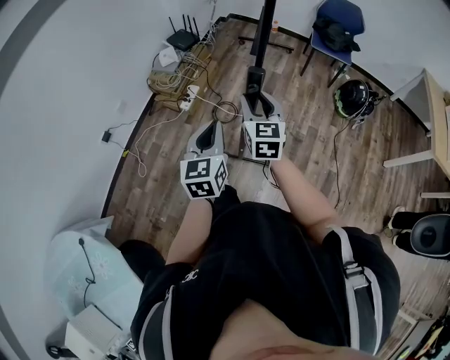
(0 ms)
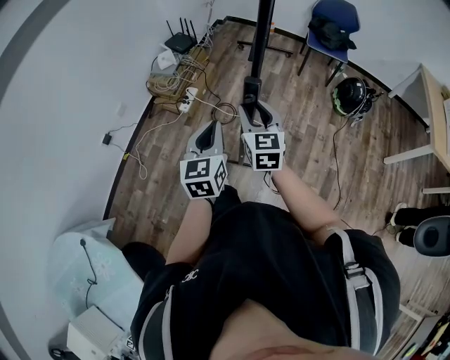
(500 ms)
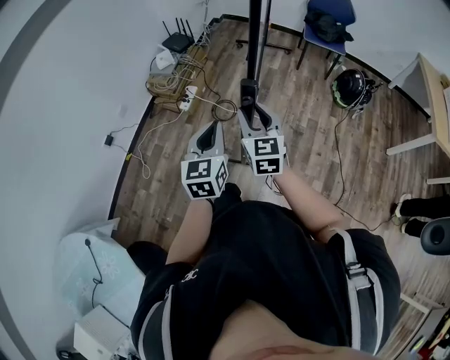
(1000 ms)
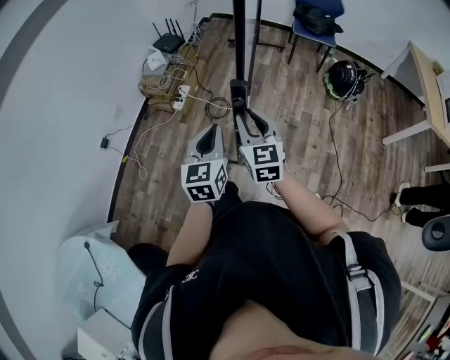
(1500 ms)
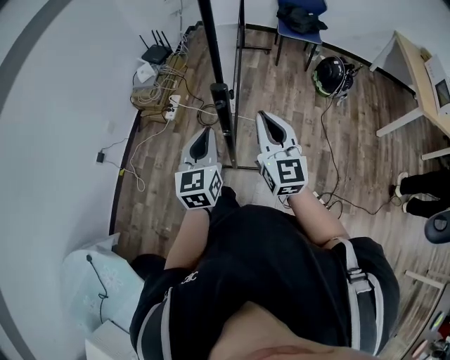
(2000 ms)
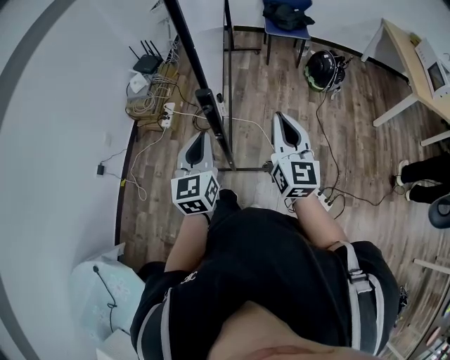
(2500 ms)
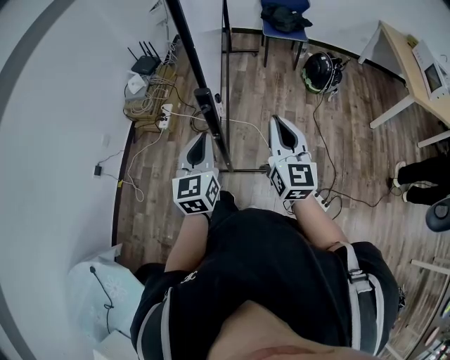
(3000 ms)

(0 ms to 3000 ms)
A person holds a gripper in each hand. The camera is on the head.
0 ms - 1500 ms: The left gripper is displaced backward by about 5 cm, while the right gripper shifts about 10 cm backward.
1500 ms - 3000 ms: The left gripper moves approximately 5 cm. The right gripper travels to the right and upward by some 15 cm, changes its angle by roughly 20 degrees, and closes.

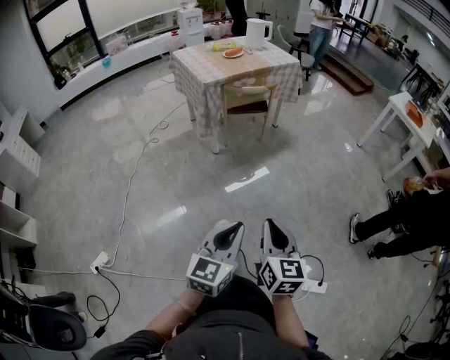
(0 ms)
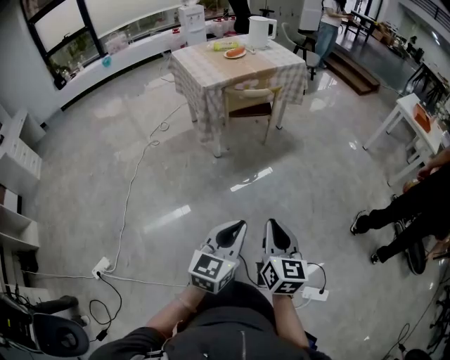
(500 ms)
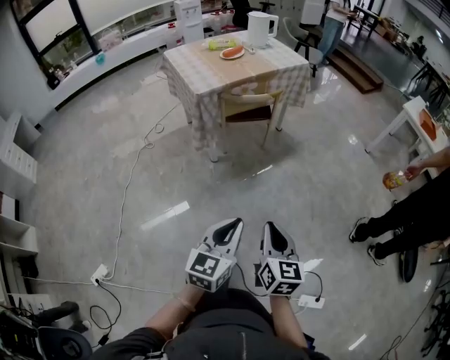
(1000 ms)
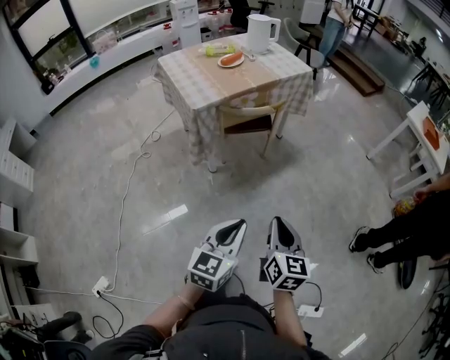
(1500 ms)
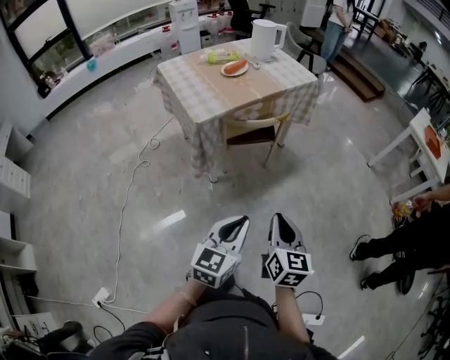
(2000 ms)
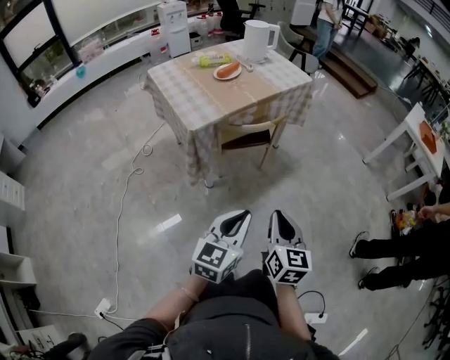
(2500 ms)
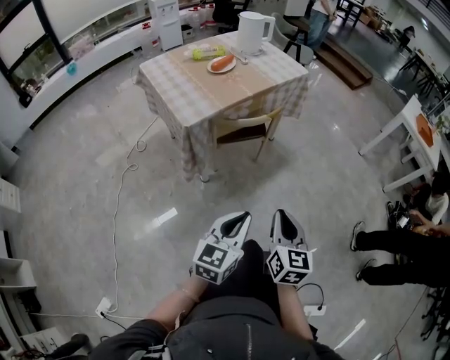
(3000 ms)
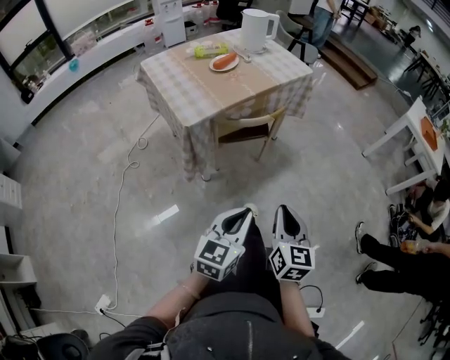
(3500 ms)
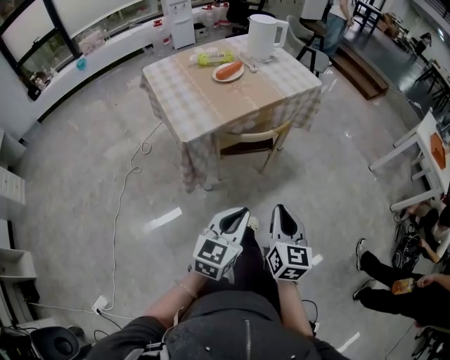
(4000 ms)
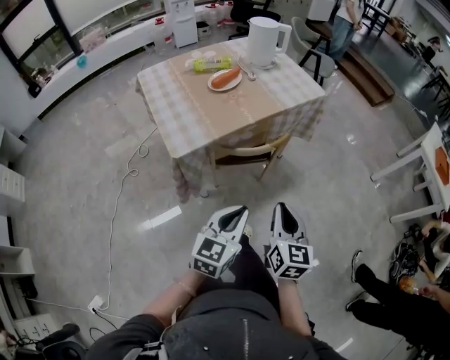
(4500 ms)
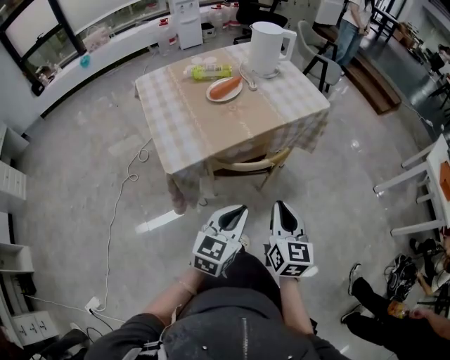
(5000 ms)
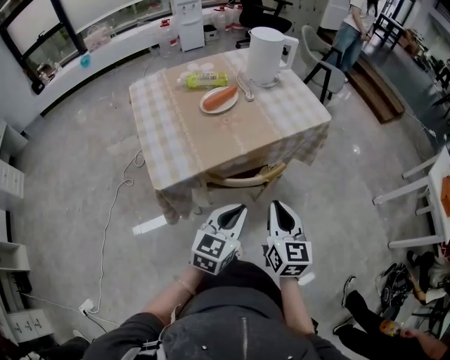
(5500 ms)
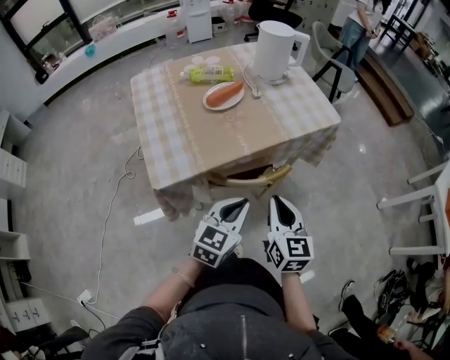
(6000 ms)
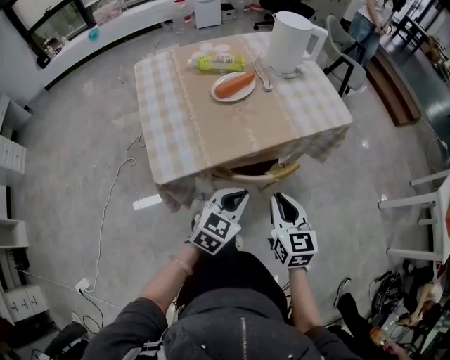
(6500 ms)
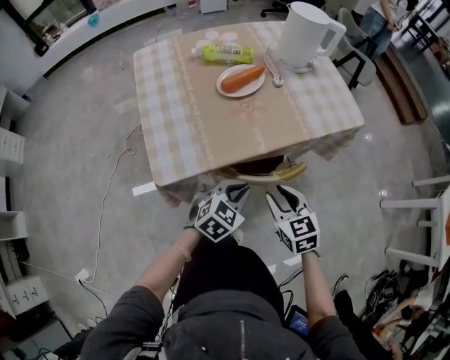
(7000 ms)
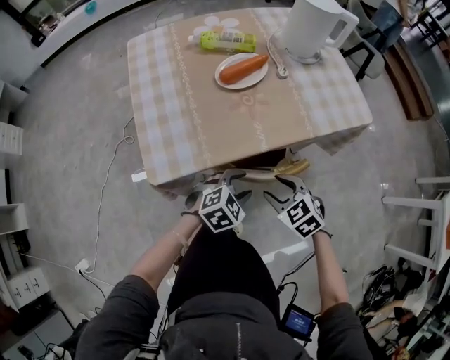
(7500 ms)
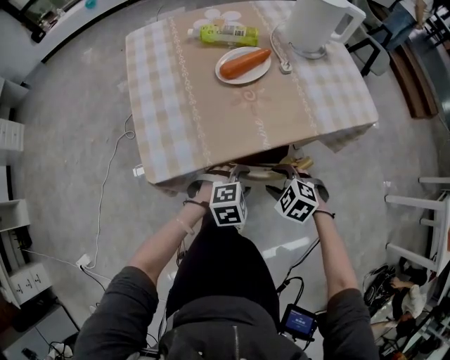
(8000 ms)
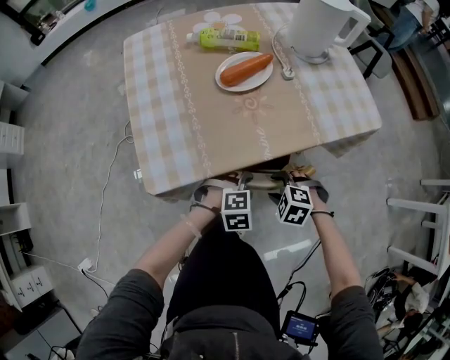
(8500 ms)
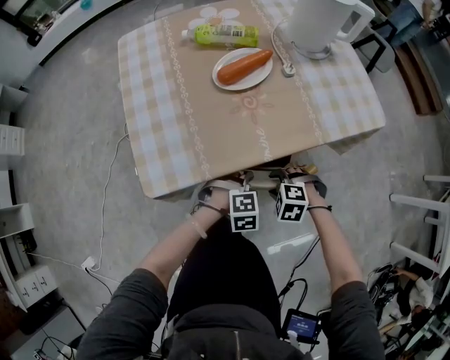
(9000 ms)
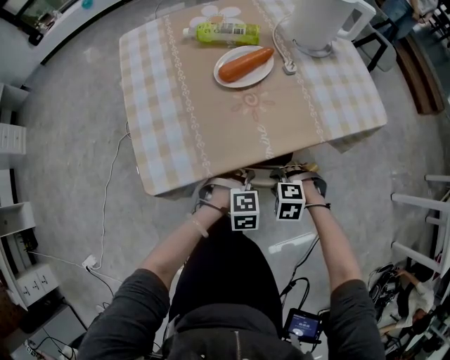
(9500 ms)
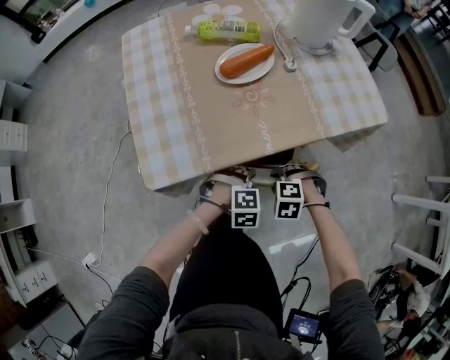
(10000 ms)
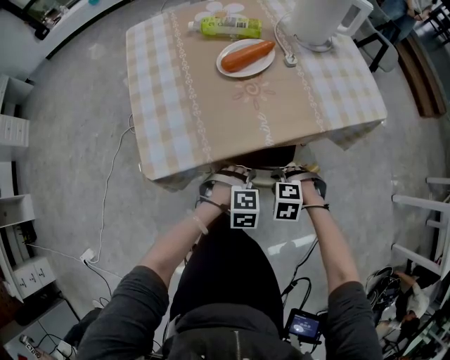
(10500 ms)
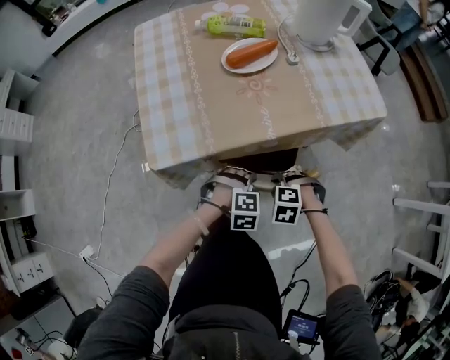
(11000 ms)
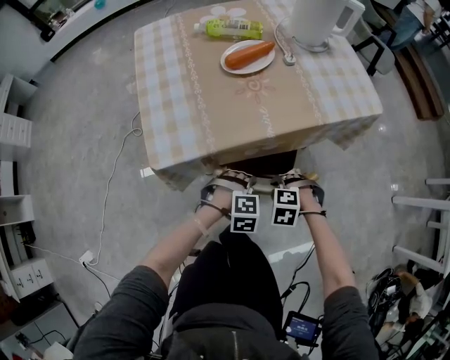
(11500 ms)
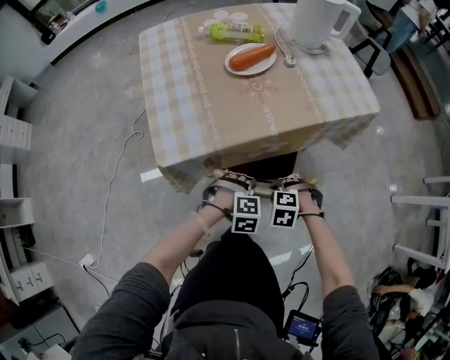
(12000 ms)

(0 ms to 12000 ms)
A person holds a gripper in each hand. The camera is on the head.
0 ms - 2000 ms: The grippers both shift forward by roughly 40 cm.
2000 ms - 4000 ms: Both grippers move forward, roughly 15 cm.
4000 ms - 6000 ms: Both grippers move forward, about 30 cm.
6000 ms - 8000 ms: Both grippers move downward and forward, some 20 cm. The left gripper points its fingers approximately 40 degrees further downward, and opens up; the right gripper tilts its fingers approximately 50 degrees downward, and opens up.
8000 ms - 10000 ms: Both grippers move downward, some 5 cm. The right gripper rotates about 30 degrees.
10000 ms - 12000 ms: The right gripper changes place by roughly 10 cm; the left gripper ends up some 10 cm from where it was.

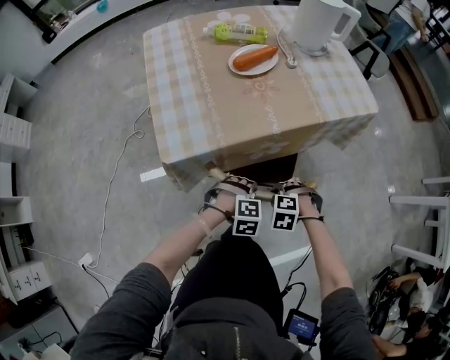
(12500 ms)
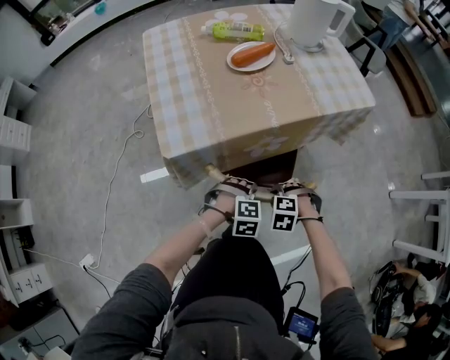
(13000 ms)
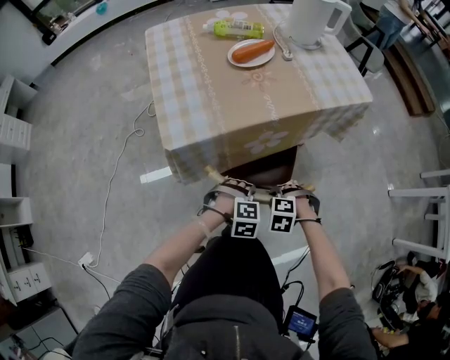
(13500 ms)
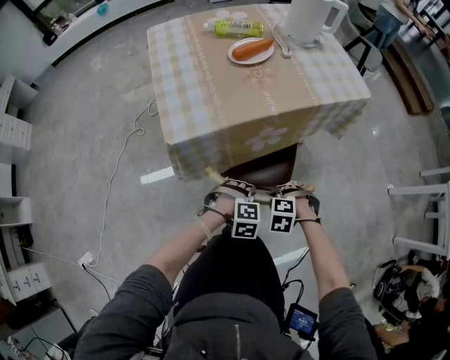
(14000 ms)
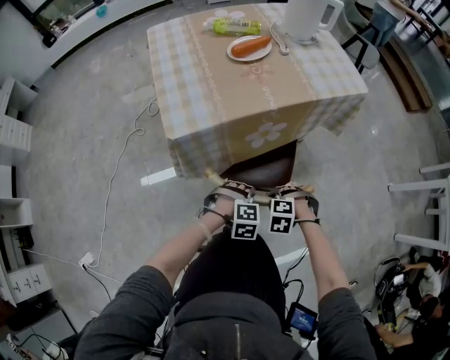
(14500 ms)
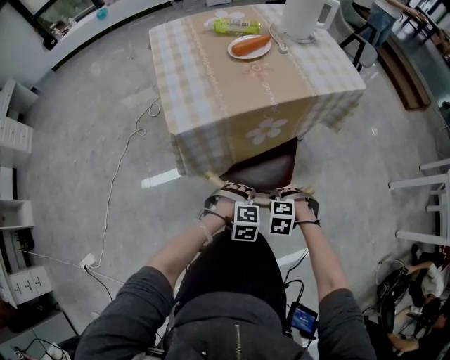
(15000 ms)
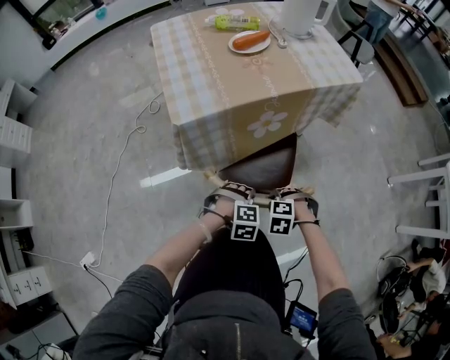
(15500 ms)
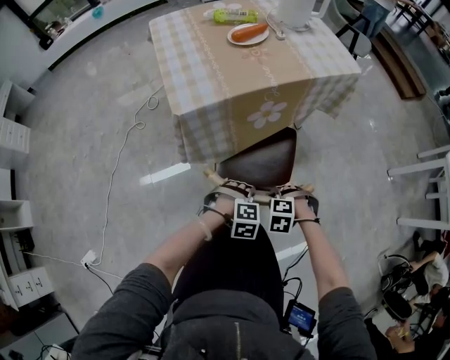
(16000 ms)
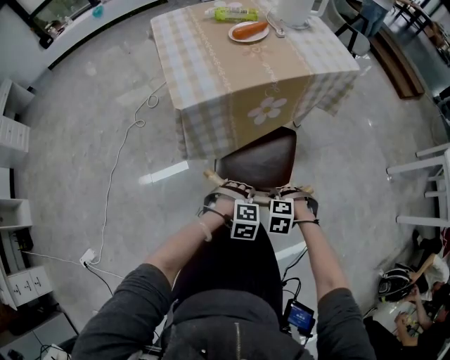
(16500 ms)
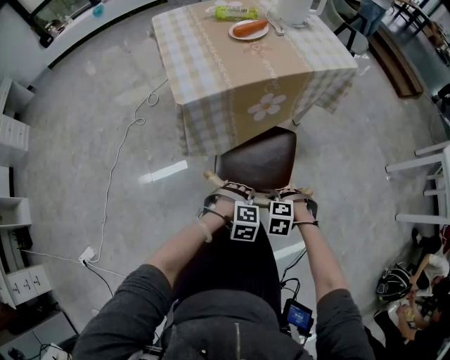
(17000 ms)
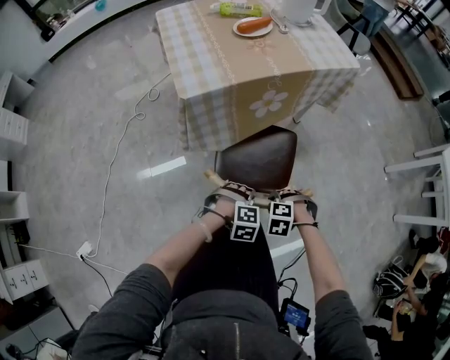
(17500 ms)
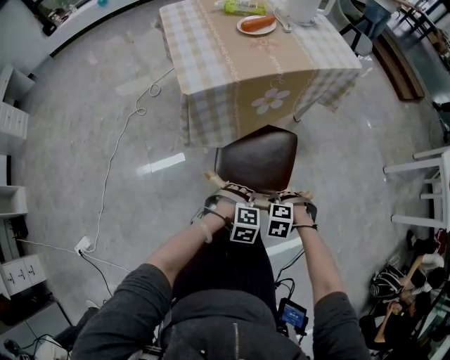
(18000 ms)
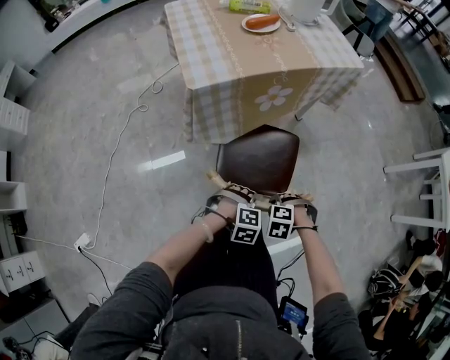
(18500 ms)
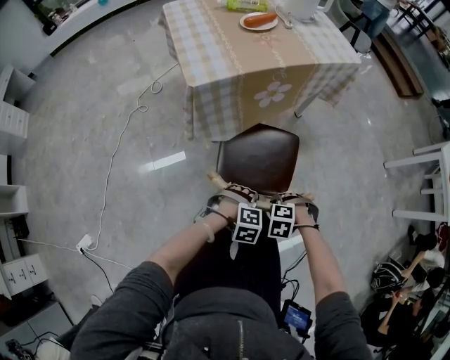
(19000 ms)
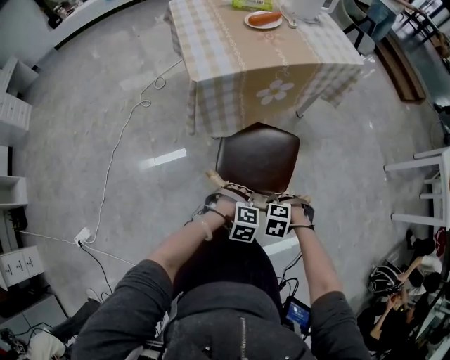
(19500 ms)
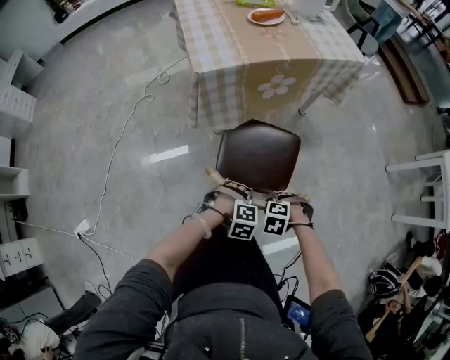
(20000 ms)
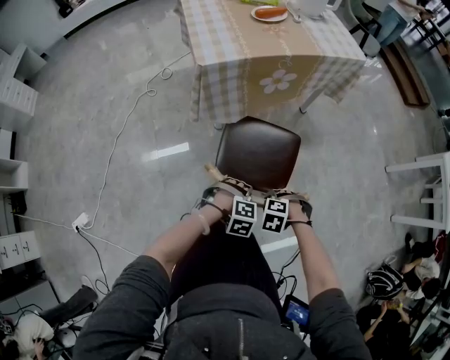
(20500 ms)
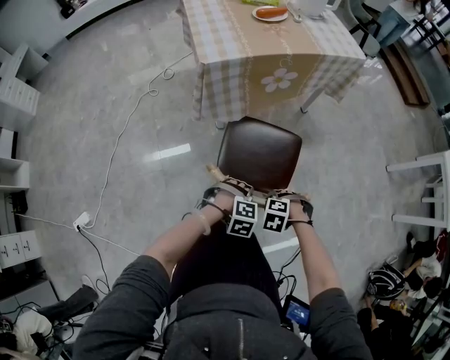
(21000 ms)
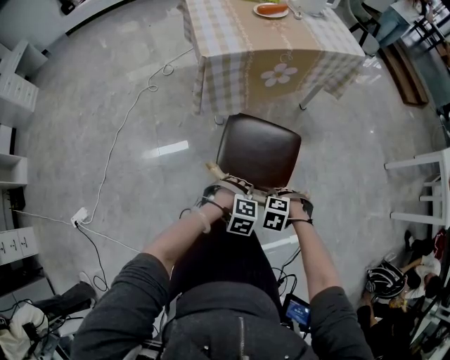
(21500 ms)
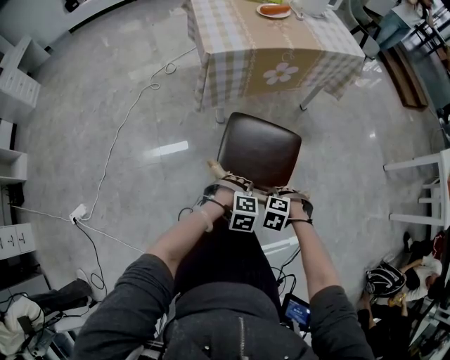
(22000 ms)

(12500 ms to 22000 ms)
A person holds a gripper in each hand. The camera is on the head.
12500 ms - 14500 ms: The left gripper changes place by some 10 cm, while the right gripper changes place by some 10 cm.
14500 ms - 16500 ms: The left gripper ends up about 10 cm from where it was, while the right gripper shifts by about 10 cm.
16500 ms - 18000 ms: The right gripper ends up approximately 5 cm from where it was, while the left gripper shifts by some 5 cm.
18000 ms - 20000 ms: The left gripper ends up about 10 cm from where it was. Meanwhile the right gripper moves approximately 10 cm.
20000 ms - 22000 ms: The right gripper shifts by roughly 5 cm, while the left gripper moves some 5 cm.

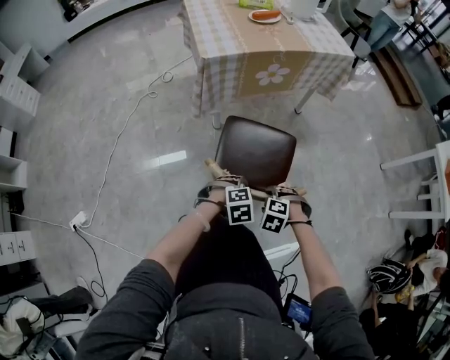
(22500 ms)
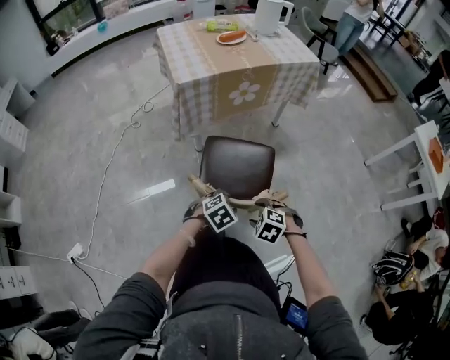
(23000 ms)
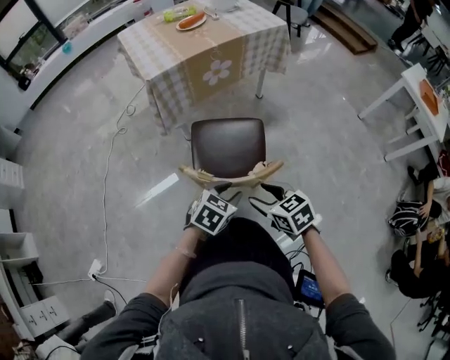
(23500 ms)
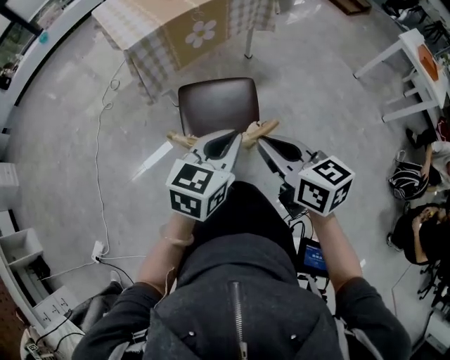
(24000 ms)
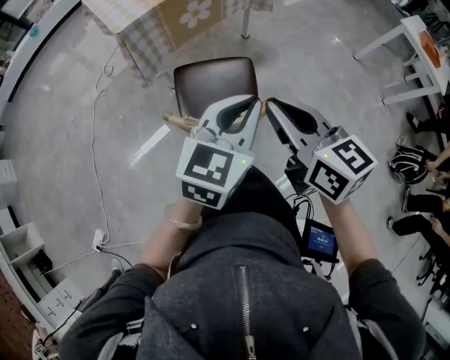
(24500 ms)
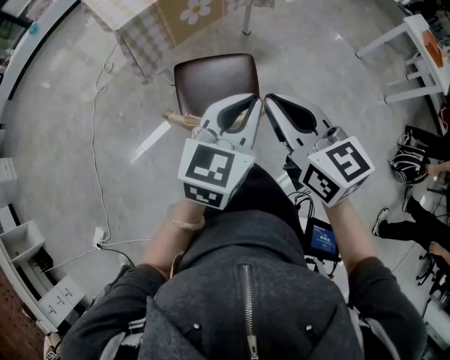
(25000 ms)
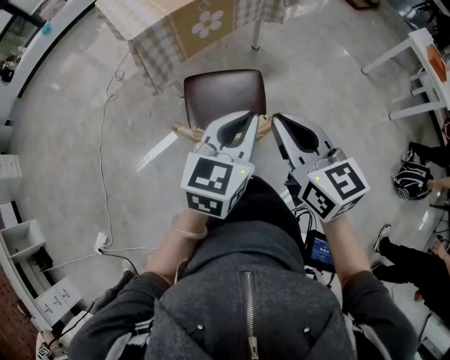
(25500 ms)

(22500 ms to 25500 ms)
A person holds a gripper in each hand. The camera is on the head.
22500 ms - 24000 ms: The two grippers go some 25 cm upward. The left gripper tilts its fingers some 50 degrees upward, and closes. The right gripper angles its fingers upward, by about 60 degrees, and closes.
24000 ms - 25500 ms: The right gripper shifts by roughly 5 cm.
